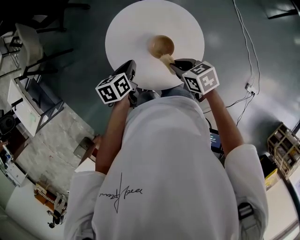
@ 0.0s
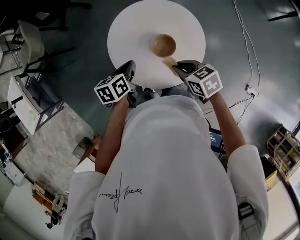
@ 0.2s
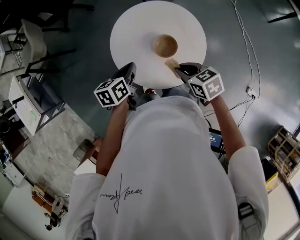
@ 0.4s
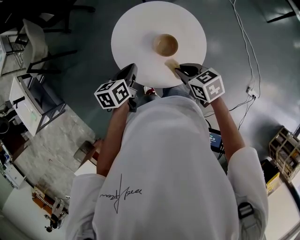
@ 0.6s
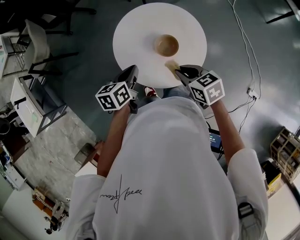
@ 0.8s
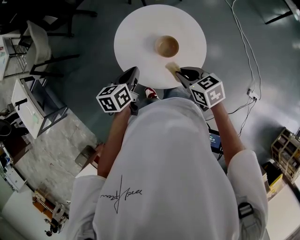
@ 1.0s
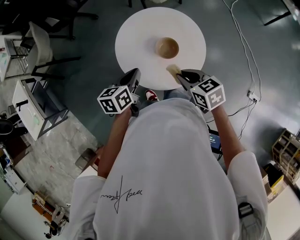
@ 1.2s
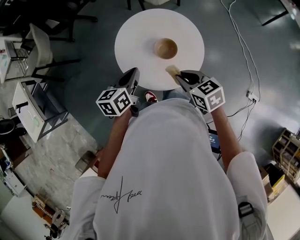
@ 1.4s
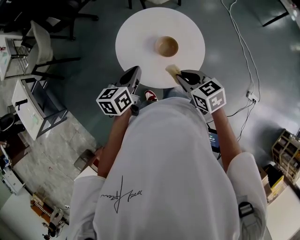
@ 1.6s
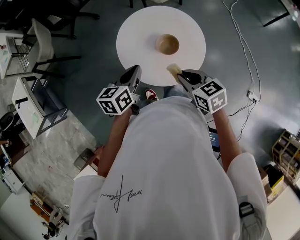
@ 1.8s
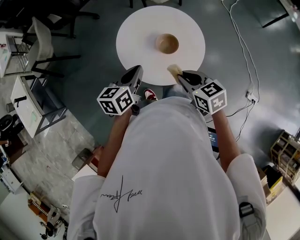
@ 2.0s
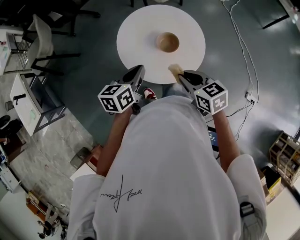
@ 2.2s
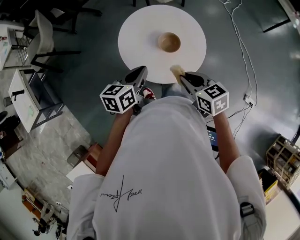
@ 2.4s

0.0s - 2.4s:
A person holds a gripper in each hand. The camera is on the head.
0.0s - 1.2s: The right gripper travels upward and backward by approximately 10 cm. Meanwhile the left gripper heads upward, covering roughly 5 cm.
1.2s - 2.4s: The right gripper ends up roughly 5 cm from where it was. Meanwhile the left gripper moves some 5 cm.

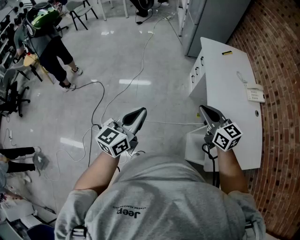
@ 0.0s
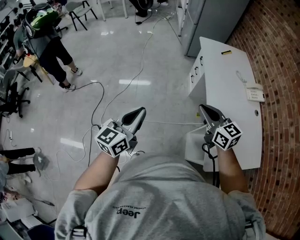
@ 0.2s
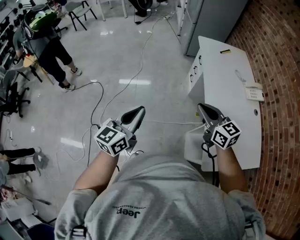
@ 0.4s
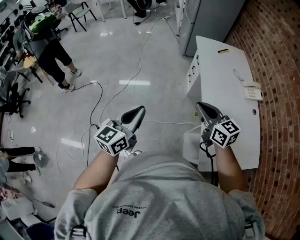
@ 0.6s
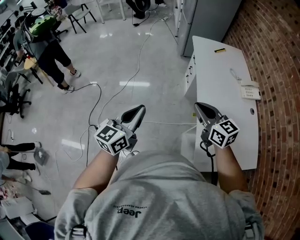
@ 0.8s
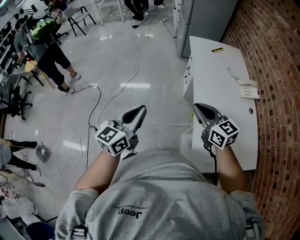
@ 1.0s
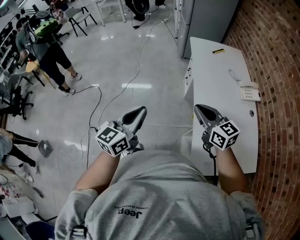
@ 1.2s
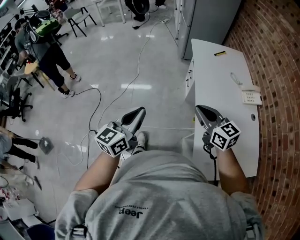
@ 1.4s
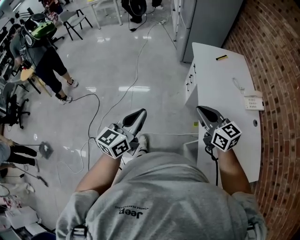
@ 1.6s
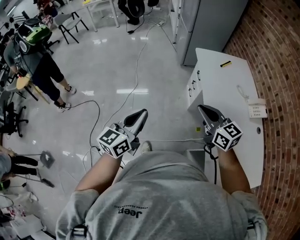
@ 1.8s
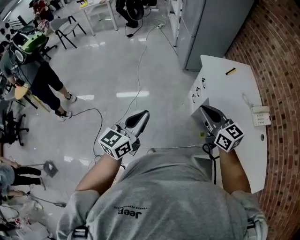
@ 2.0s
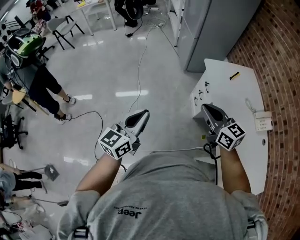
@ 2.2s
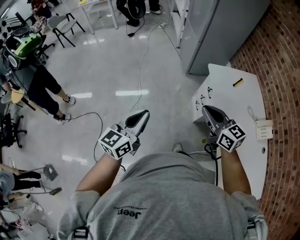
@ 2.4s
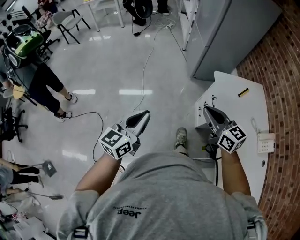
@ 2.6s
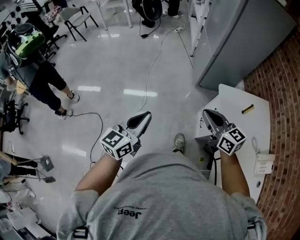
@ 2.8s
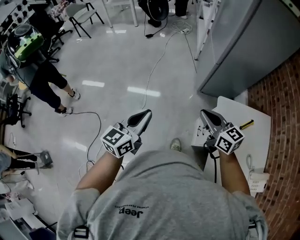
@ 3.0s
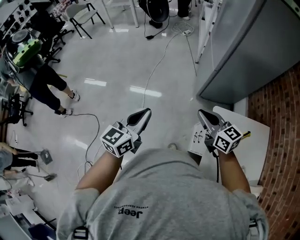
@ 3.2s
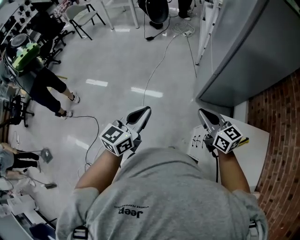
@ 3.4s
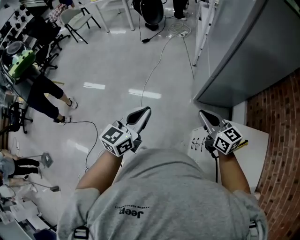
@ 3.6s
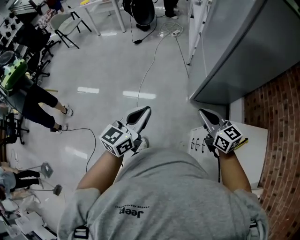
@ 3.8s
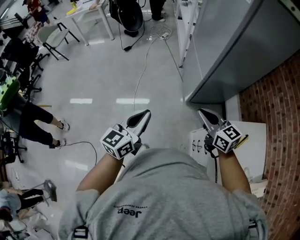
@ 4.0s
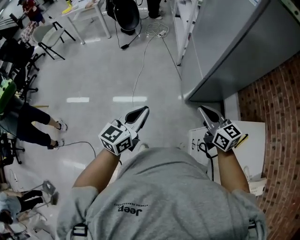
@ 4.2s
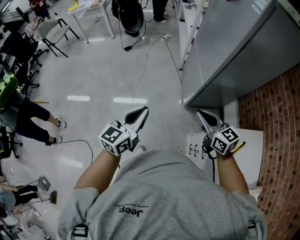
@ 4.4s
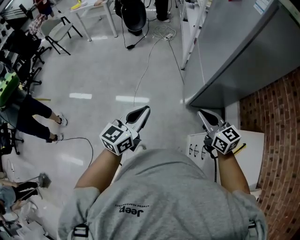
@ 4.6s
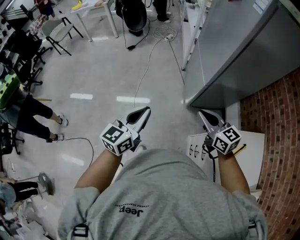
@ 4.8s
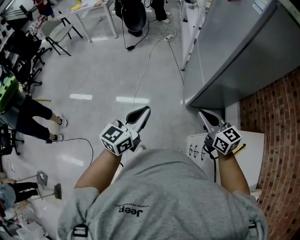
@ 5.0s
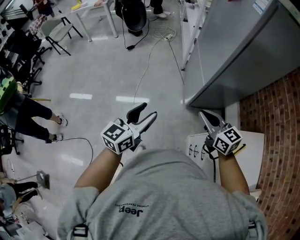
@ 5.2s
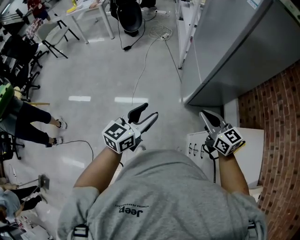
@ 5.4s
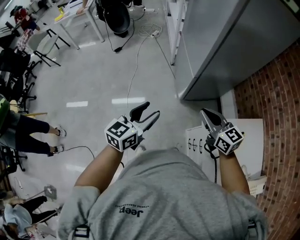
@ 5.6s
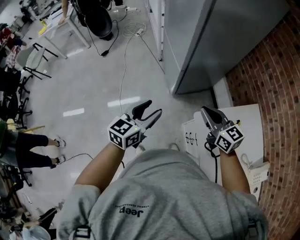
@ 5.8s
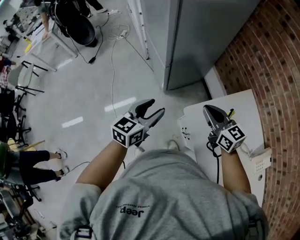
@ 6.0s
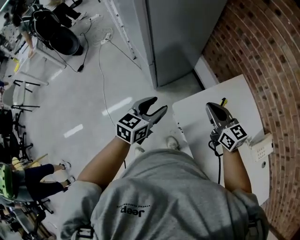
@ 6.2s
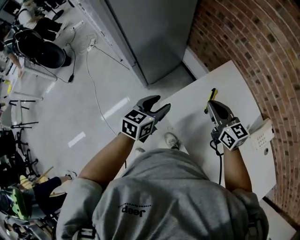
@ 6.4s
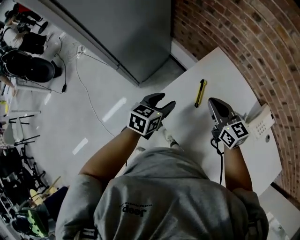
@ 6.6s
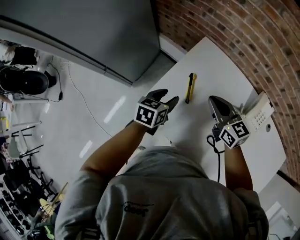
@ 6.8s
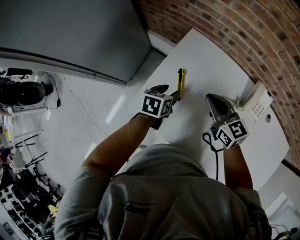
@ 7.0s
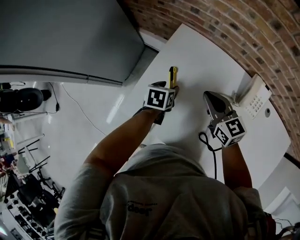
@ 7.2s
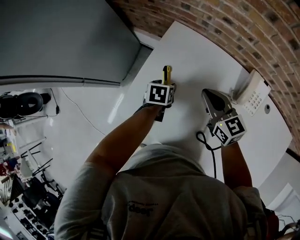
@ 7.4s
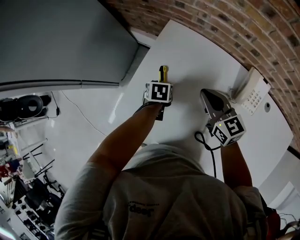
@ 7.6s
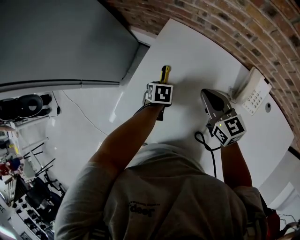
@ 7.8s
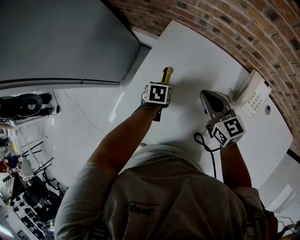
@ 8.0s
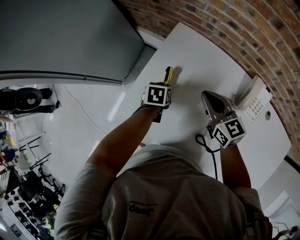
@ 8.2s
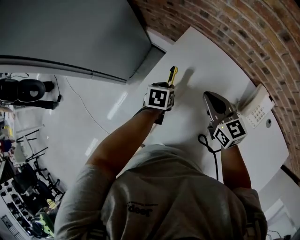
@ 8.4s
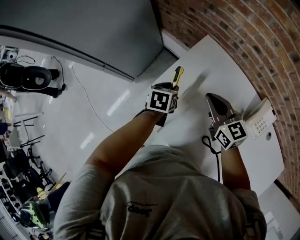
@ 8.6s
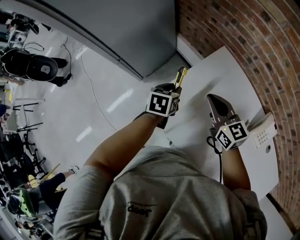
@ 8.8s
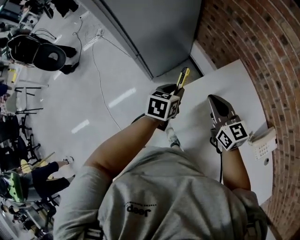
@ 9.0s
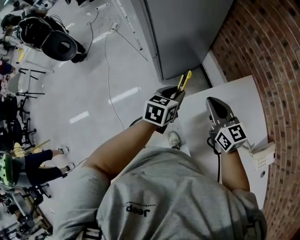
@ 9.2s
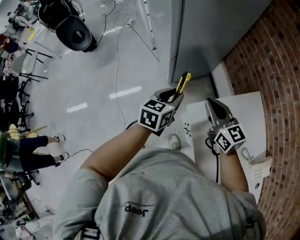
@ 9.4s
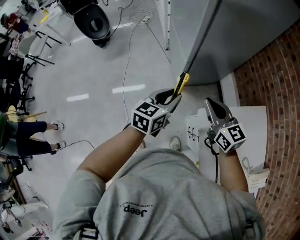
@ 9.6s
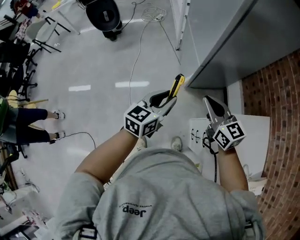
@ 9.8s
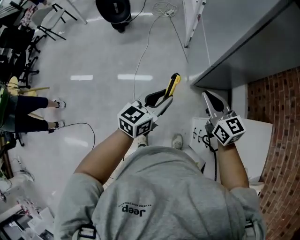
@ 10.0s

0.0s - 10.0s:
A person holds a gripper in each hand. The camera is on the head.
0.0s - 1.4s: Both grippers travel together to the right, roughly 10 cm.
1.4s - 2.8s: The pair of grippers is taken forward, some 50 cm.
2.8s - 4.2s: The grippers both shift forward by approximately 35 cm.
4.2s - 5.8s: The two grippers go approximately 15 cm to the right. The left gripper opens its fingers.
5.8s - 7.2s: Both grippers are carried some 50 cm. The left gripper angles its fingers downward, by some 40 degrees. The right gripper changes its angle by some 50 degrees.
7.2s - 8.6s: Both grippers move to the left, roughly 5 cm. The left gripper goes downward and returns, some 5 cm each way, and closes.
8.6s - 10.0s: The pair of grippers is taken about 50 cm. The right gripper rotates roughly 50 degrees. The left gripper tilts its fingers about 40 degrees upward.

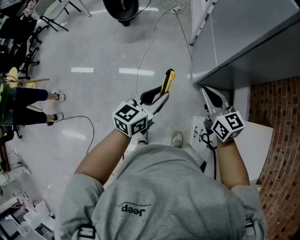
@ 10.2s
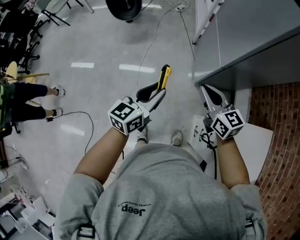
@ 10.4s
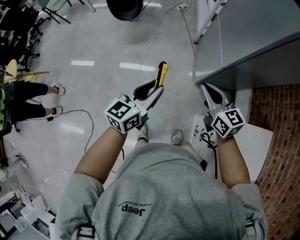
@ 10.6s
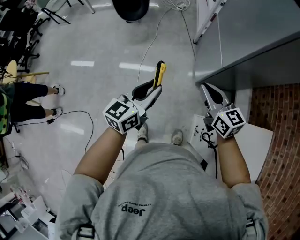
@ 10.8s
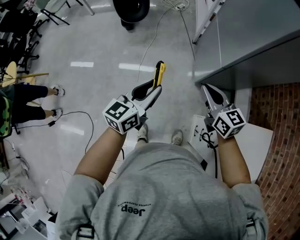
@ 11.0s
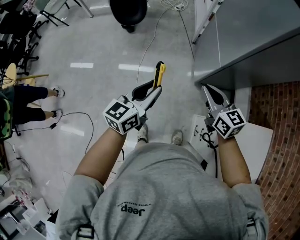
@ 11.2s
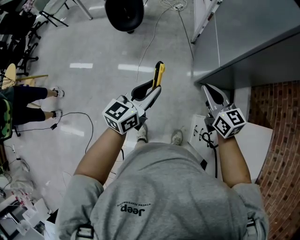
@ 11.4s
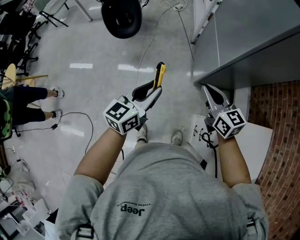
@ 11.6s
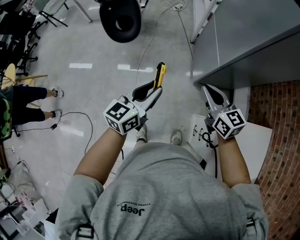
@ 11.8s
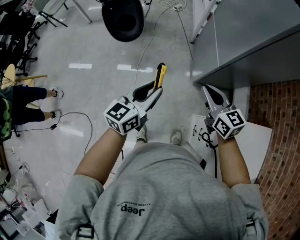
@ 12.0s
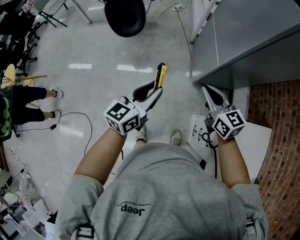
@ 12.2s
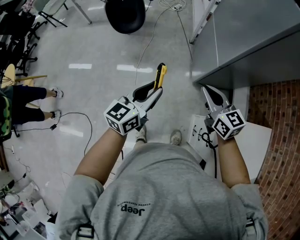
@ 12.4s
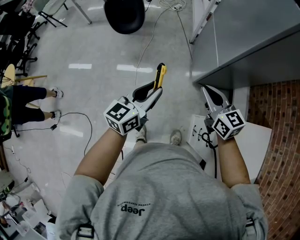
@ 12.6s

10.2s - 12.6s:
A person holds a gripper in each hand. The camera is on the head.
10.2s - 11.4s: The left gripper heads to the left, covering about 5 cm.
11.4s - 12.6s: Both grippers stay about where they are.

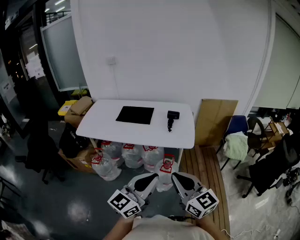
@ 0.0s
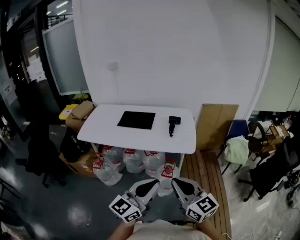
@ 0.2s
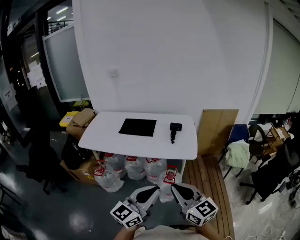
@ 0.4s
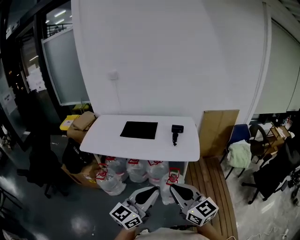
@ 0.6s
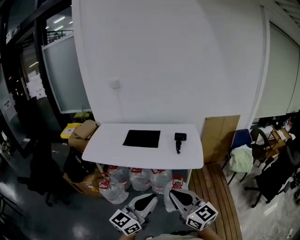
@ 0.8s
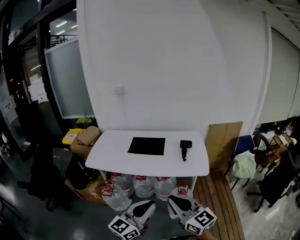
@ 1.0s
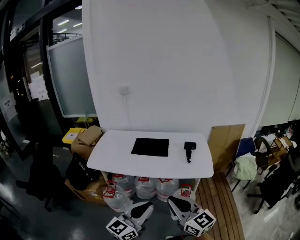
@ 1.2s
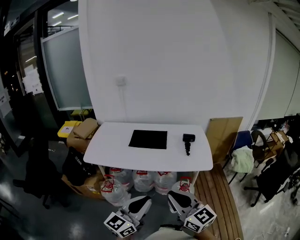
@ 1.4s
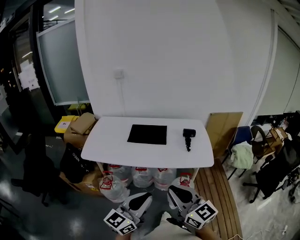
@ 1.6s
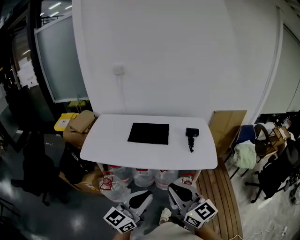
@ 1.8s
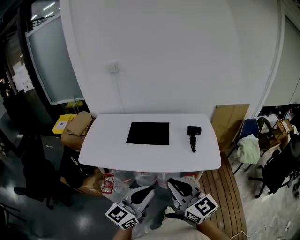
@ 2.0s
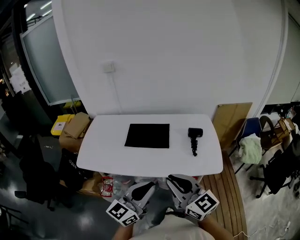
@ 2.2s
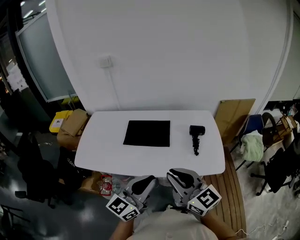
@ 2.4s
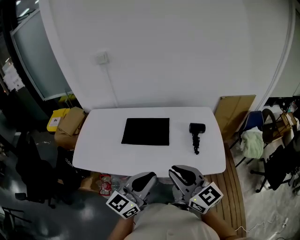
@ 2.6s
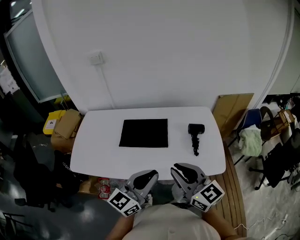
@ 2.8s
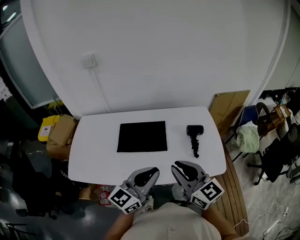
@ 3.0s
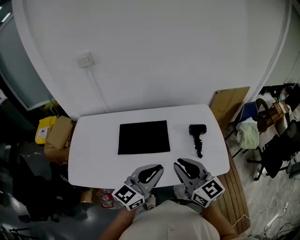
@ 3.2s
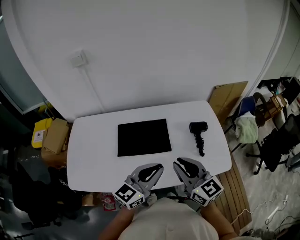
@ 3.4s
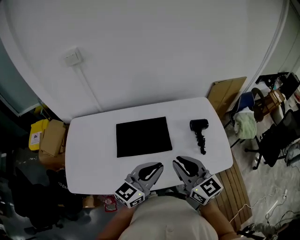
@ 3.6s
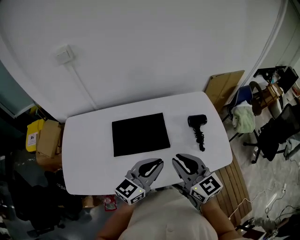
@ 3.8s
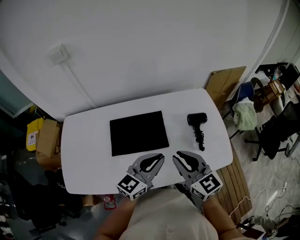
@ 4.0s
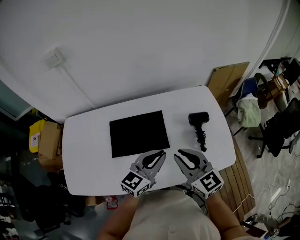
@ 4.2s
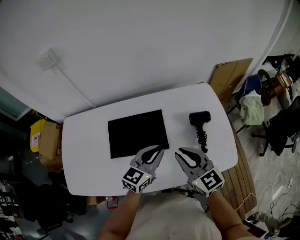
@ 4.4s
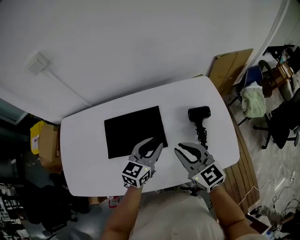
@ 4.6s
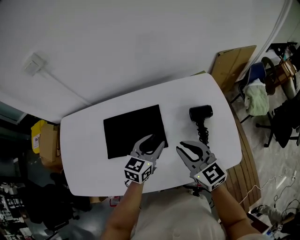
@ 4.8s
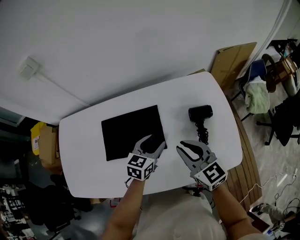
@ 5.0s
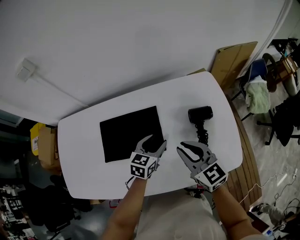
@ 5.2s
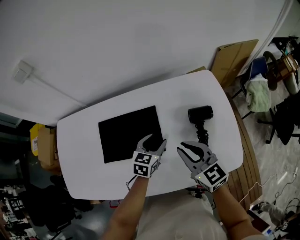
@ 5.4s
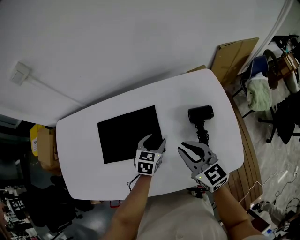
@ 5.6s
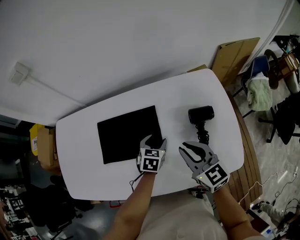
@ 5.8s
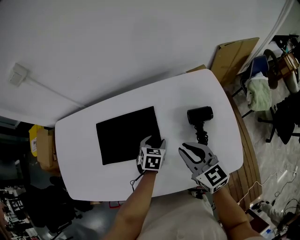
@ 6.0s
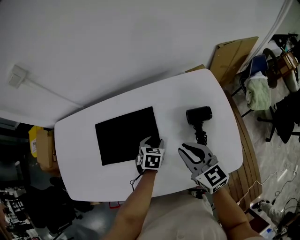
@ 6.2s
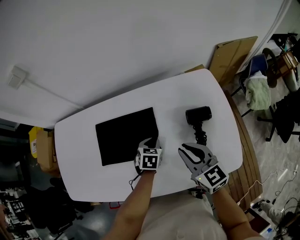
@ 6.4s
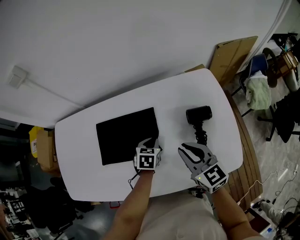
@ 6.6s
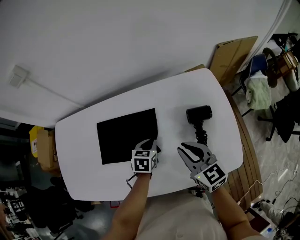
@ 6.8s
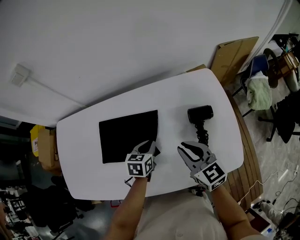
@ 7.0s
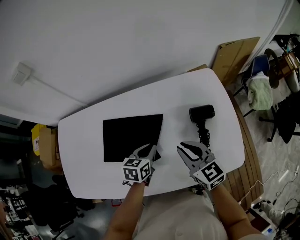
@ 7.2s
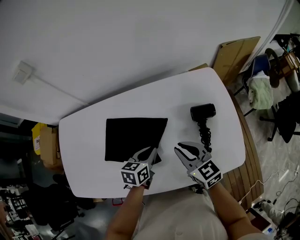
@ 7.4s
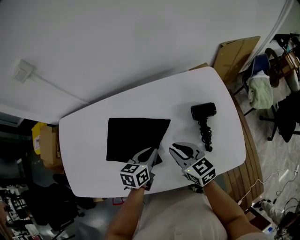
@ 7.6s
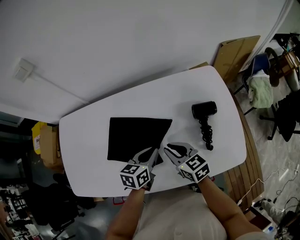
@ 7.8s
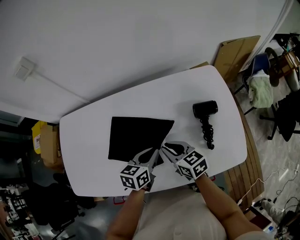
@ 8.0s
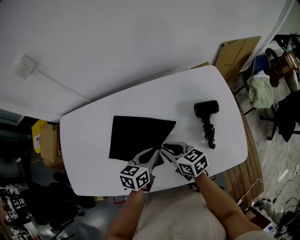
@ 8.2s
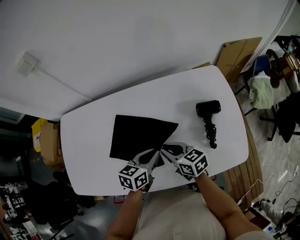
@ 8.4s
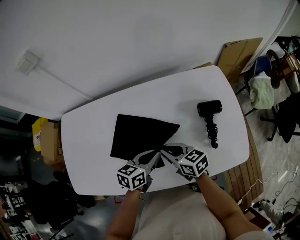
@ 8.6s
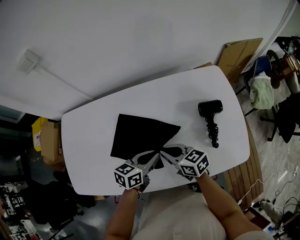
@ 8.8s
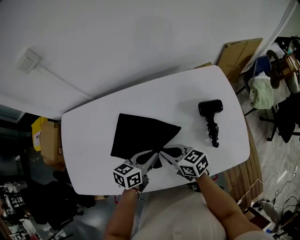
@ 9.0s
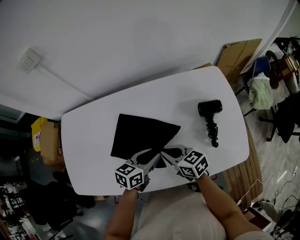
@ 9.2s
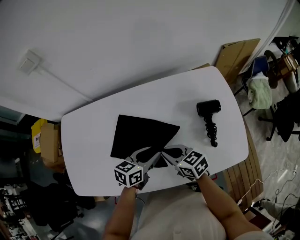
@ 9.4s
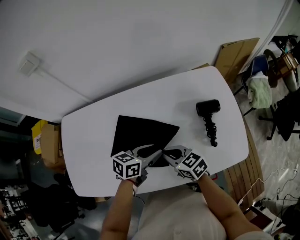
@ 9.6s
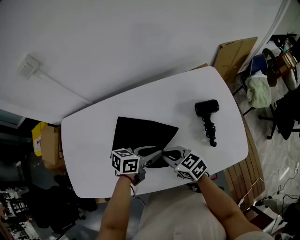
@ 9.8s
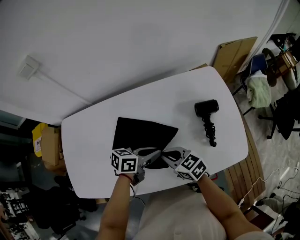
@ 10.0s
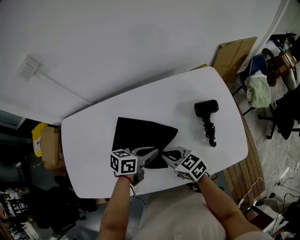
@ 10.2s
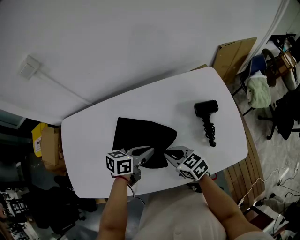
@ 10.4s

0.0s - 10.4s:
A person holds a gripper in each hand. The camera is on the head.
0.0s - 1.4s: The grippers both shift to the left by approximately 20 cm.
1.4s - 3.0s: Both grippers move forward, about 40 cm.
3.0s - 4.4s: The two grippers go approximately 20 cm forward and downward.
4.4s - 6.0s: The left gripper goes approximately 25 cm downward and forward, angles its fingers downward, by approximately 40 degrees, and opens its fingers, while the right gripper goes about 10 cm downward, forward and to the right.
6.0s - 7.4s: The left gripper travels upward and backward by approximately 10 cm, rotates approximately 30 degrees, and closes up.
7.4s - 9.0s: The right gripper is displaced to the left by roughly 10 cm, and turns by roughly 20 degrees. Meanwhile the left gripper shifts by about 5 cm.
9.0s - 10.4s: The left gripper opens, then closes once more.
